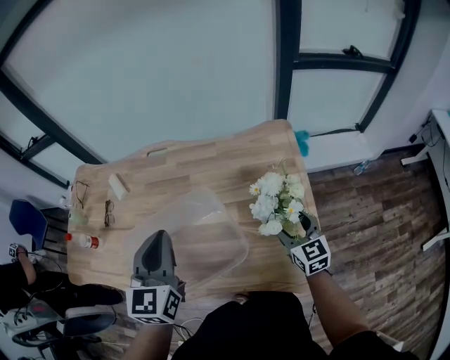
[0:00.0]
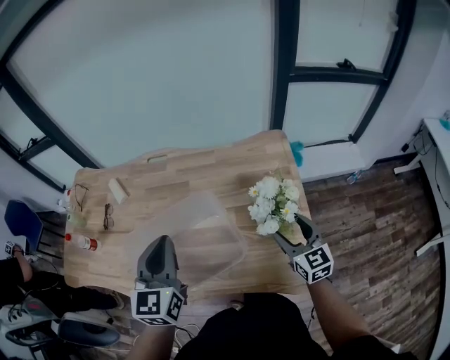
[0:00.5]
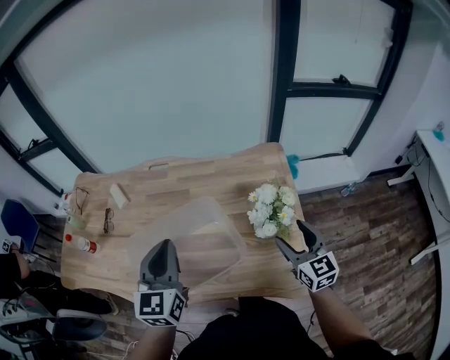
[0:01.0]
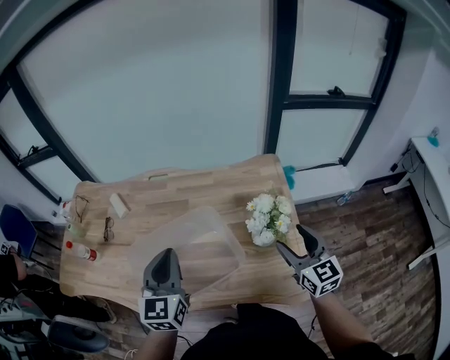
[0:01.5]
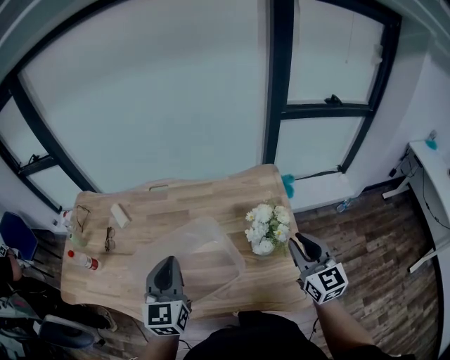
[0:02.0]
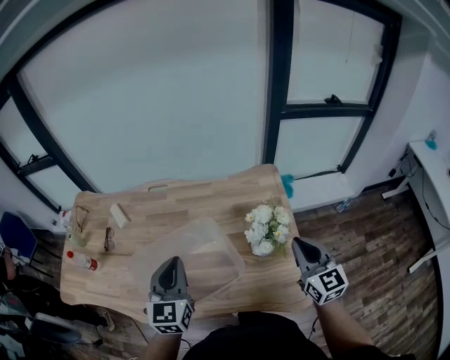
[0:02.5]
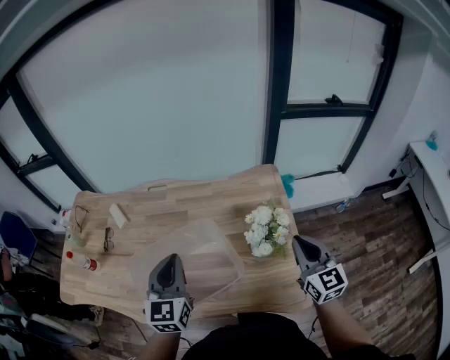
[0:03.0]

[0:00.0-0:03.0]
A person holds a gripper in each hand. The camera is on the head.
0.0 to 1.5 s: The right gripper travels upward and backward by some 15 cm.
1.5 to 3.0 s: The right gripper closes up.

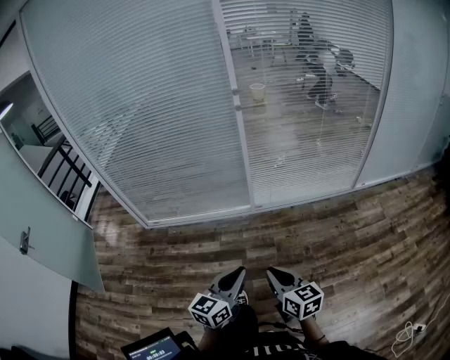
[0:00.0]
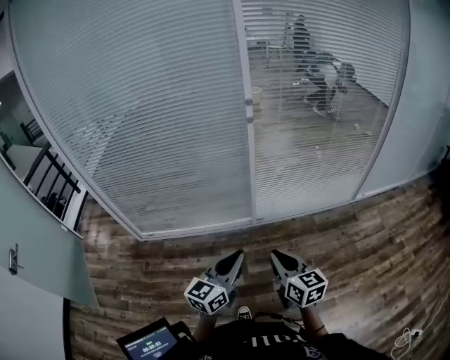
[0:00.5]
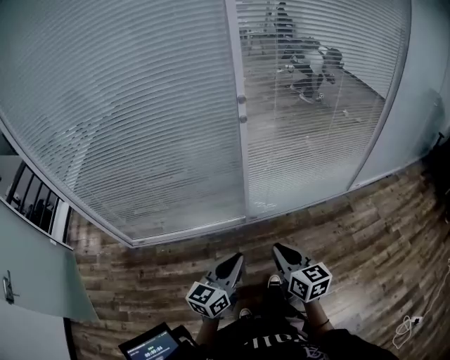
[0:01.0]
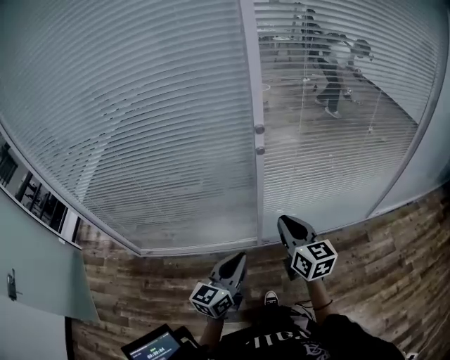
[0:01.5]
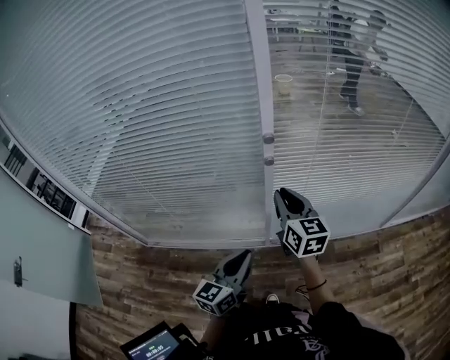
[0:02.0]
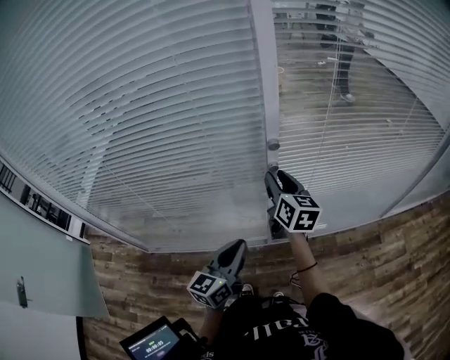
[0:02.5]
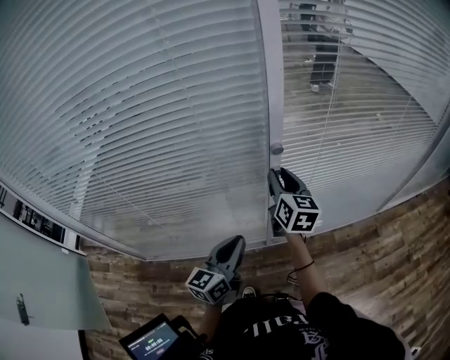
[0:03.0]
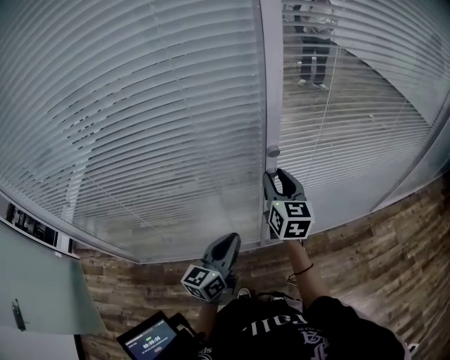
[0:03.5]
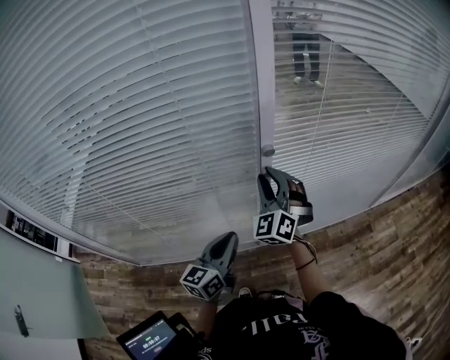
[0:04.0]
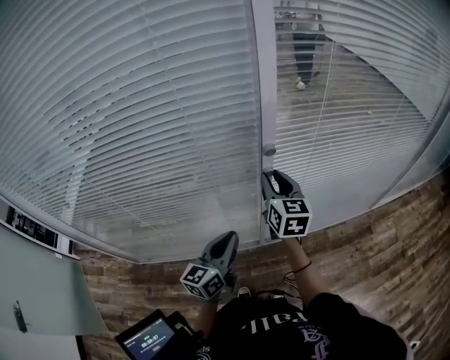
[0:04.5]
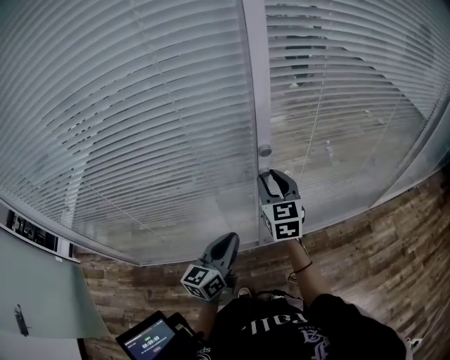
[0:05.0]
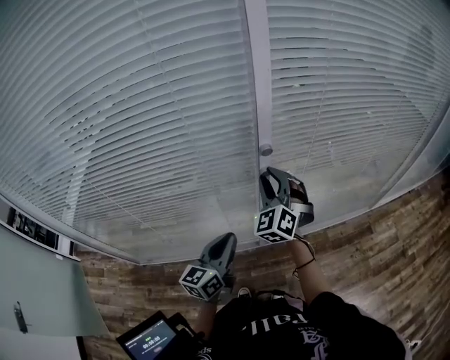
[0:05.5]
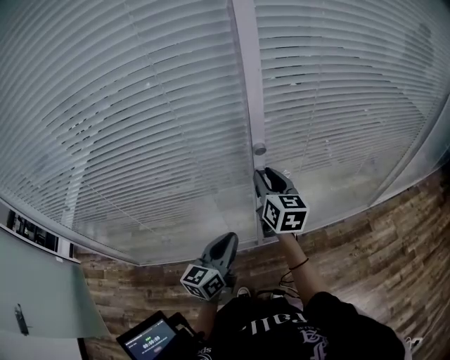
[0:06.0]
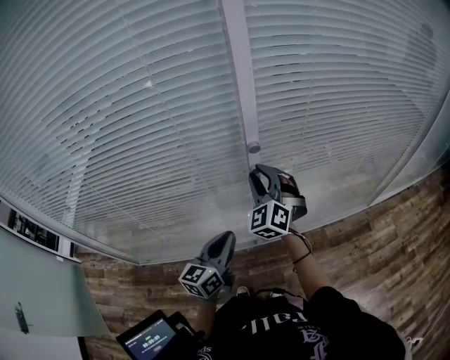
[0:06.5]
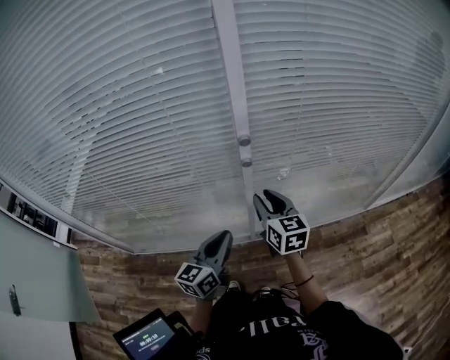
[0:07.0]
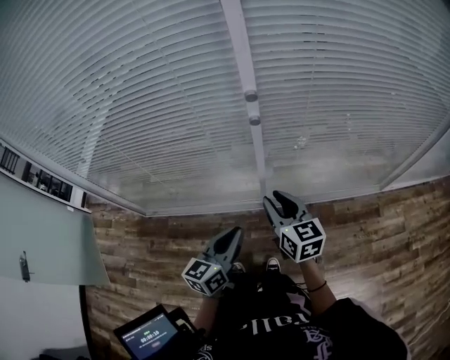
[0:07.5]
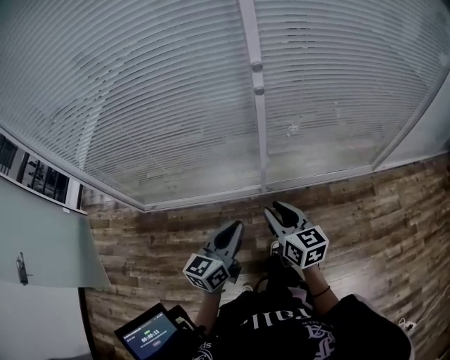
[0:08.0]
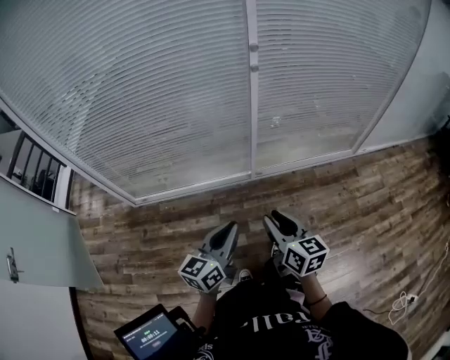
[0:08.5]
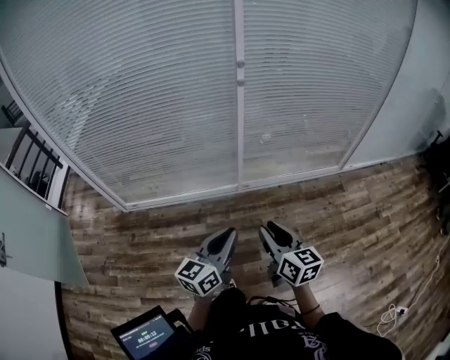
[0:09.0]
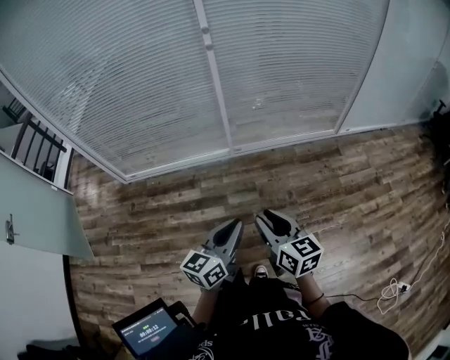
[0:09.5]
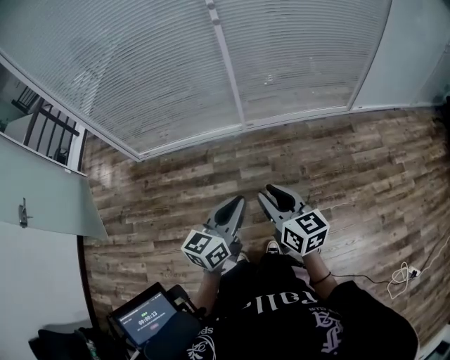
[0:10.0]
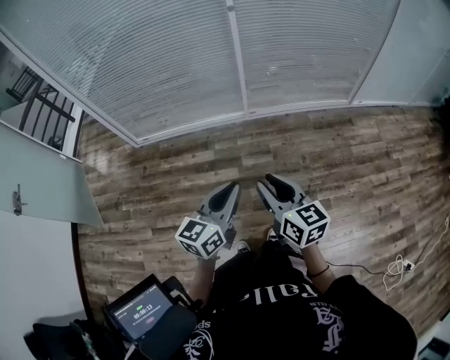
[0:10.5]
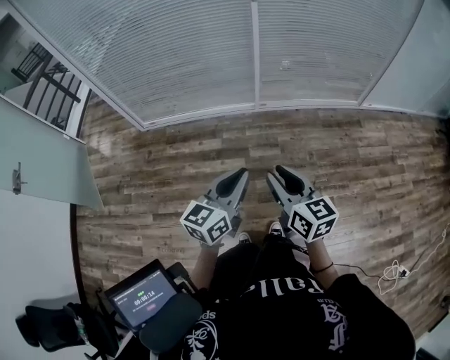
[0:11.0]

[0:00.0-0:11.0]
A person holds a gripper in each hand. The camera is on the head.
0.0 to 2.0 s: The pair of grippers is taken forward, some 70 cm.
2.0 to 3.5 s: The left gripper travels forward and to the left by roughly 15 cm. The right gripper heads forward, covering approximately 15 cm, and opens.
3.5 to 5.5 s: The right gripper twists some 60 degrees counterclockwise, seen from behind.
5.5 to 7.5 s: The right gripper is displaced backward and downward by some 20 cm, and rolls clockwise, seen from behind, by roughly 60 degrees, while the left gripper travels backward and to the right by about 15 cm.
7.5 to 9.0 s: The pair of grippers is taken backward, about 50 cm.
9.0 to 11.0 s: Both grippers travel together backward, some 25 cm.

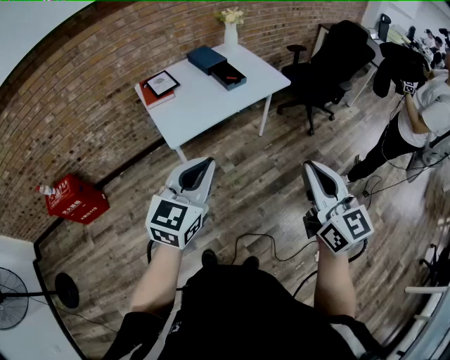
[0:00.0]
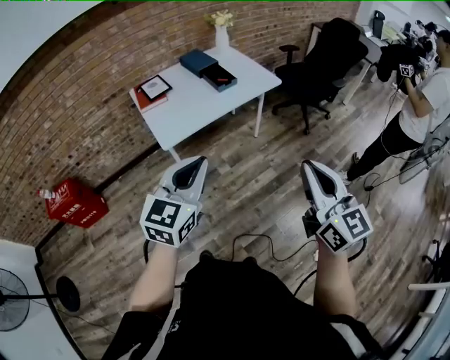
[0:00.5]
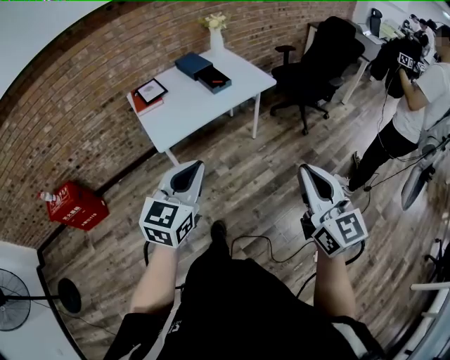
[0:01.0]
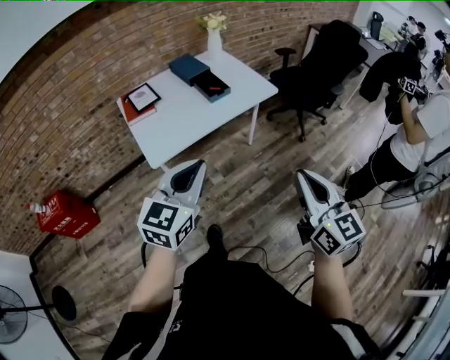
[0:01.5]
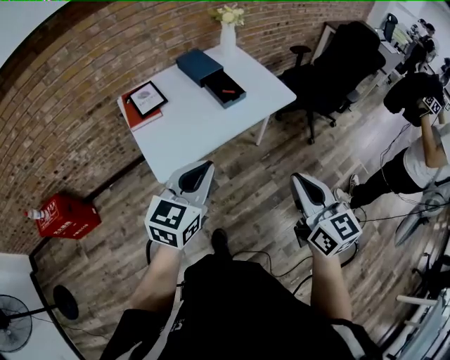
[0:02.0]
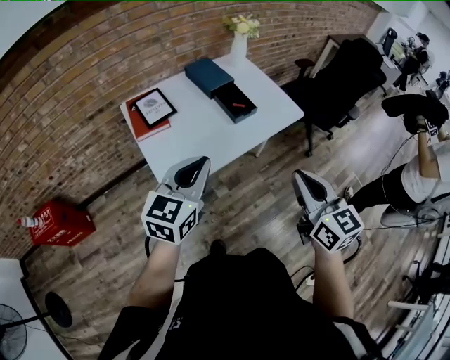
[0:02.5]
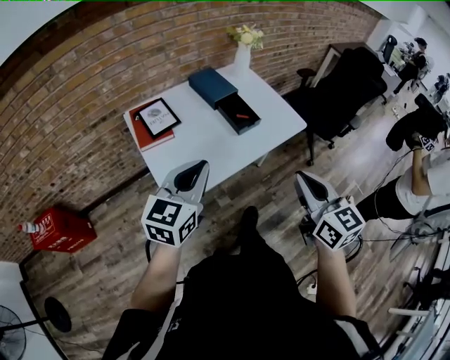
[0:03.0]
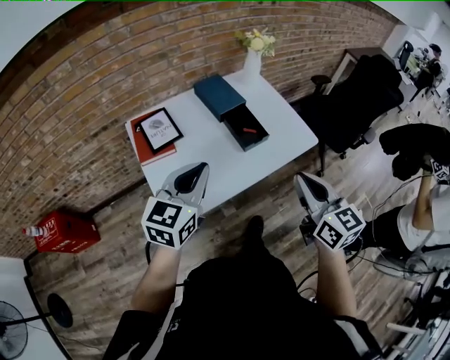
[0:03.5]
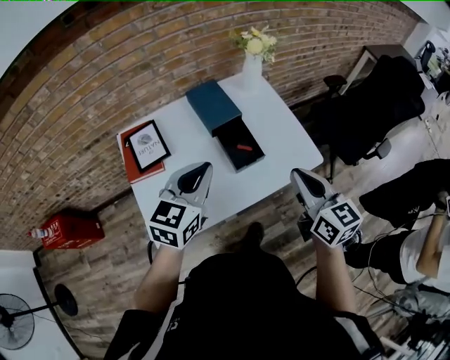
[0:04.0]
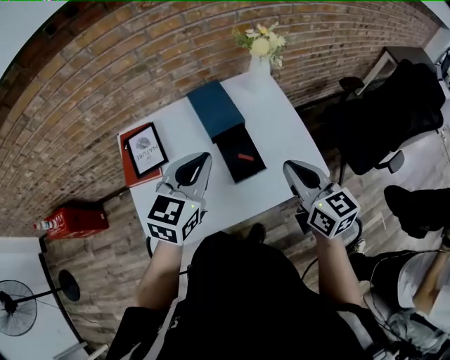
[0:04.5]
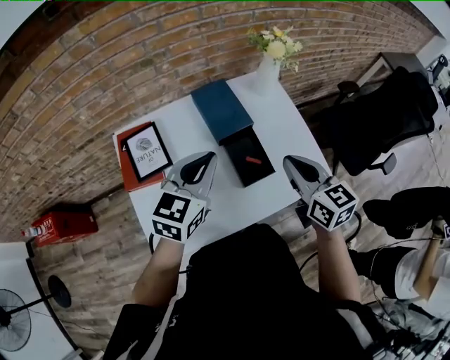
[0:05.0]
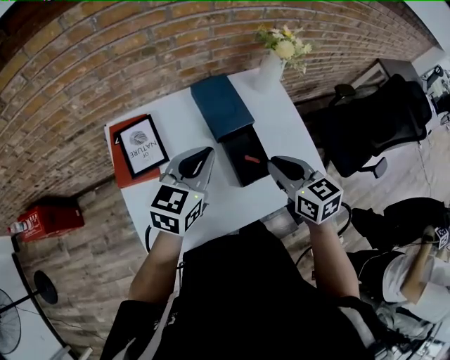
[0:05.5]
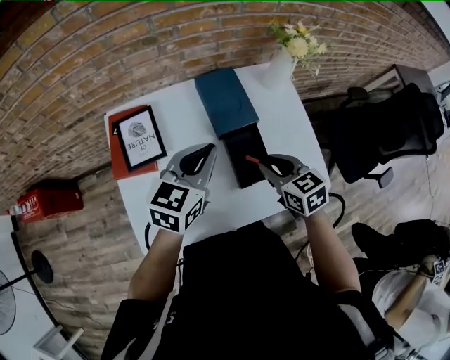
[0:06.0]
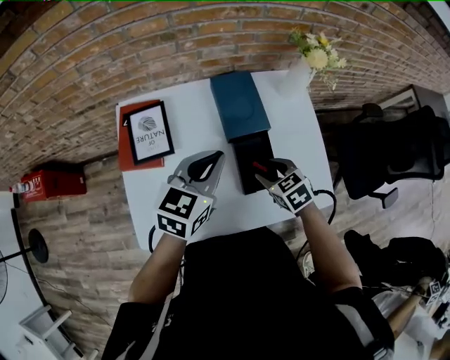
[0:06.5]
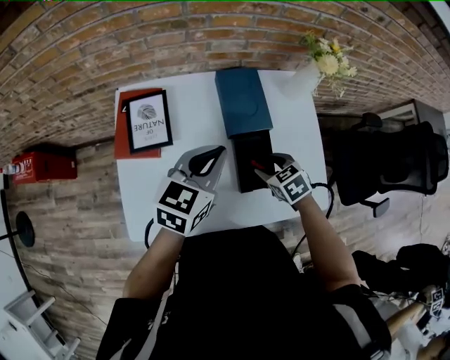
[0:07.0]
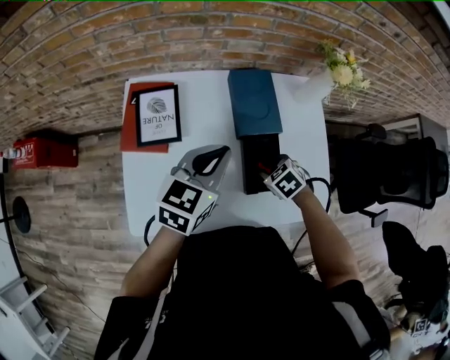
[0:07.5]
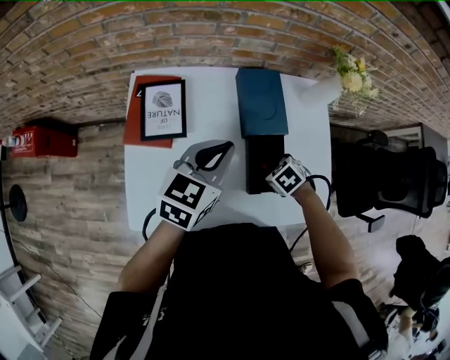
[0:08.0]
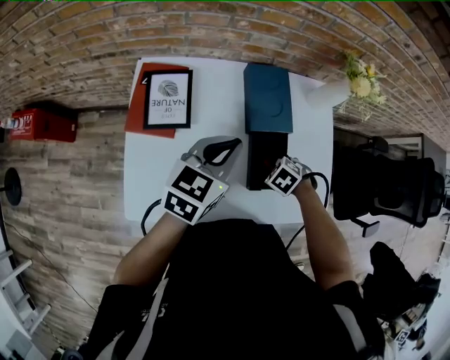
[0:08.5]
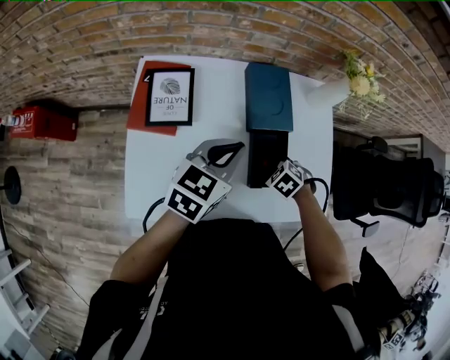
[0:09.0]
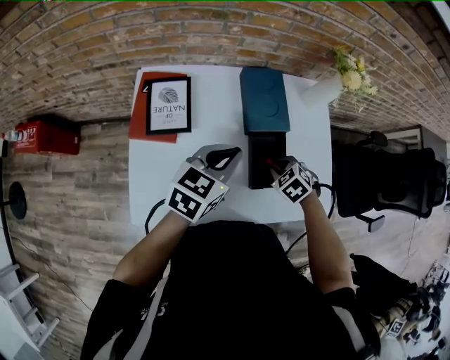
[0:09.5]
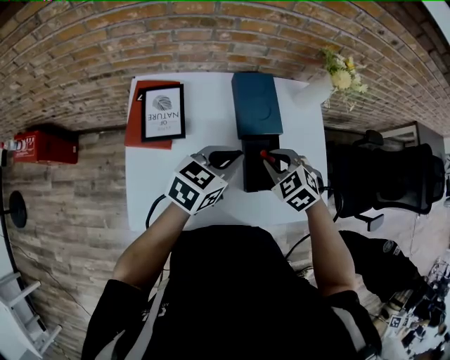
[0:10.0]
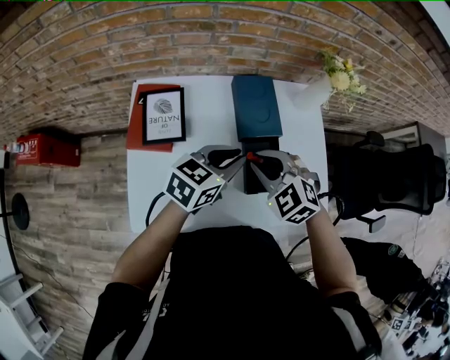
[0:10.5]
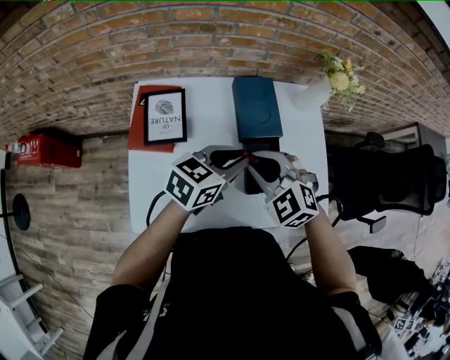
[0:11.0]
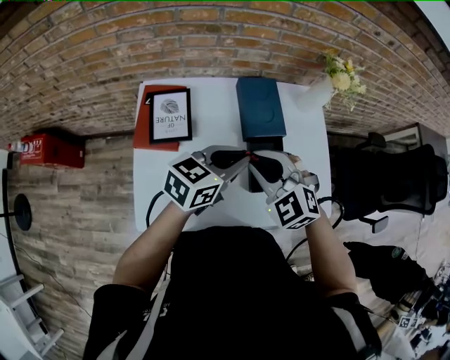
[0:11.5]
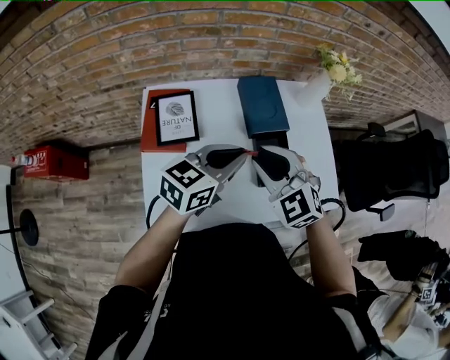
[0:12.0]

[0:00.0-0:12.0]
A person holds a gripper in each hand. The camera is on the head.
0.0 to 2.0 s: The grippers both shift forward by about 20 cm.
2.0 to 4.0 s: Both grippers move forward, approximately 35 cm.
4.0 to 6.0 s: The left gripper shifts approximately 15 cm forward and downward. Meanwhile the right gripper shifts some 25 cm forward, downward and to the left, and swivels approximately 40 degrees.
6.0 to 8.0 s: The right gripper shifts about 15 cm downward, tilts its fingers approximately 40 degrees downward, and opens.
8.0 to 10.0 s: The right gripper travels upward by roughly 10 cm, swivels roughly 30 degrees, and closes. Meanwhile the left gripper shifts by some 5 cm.
10.0 to 12.0 s: The right gripper goes some 15 cm upward, to the left and backward, and changes its angle by roughly 30 degrees. Meanwhile the left gripper travels upward by approximately 5 cm.

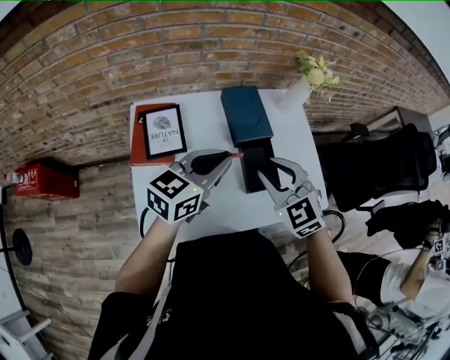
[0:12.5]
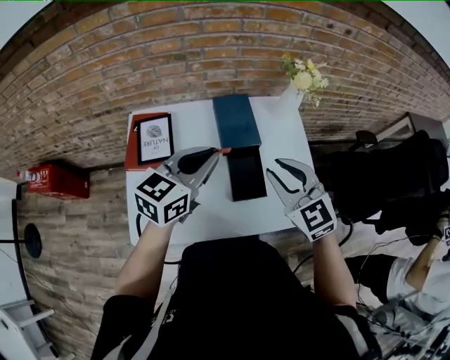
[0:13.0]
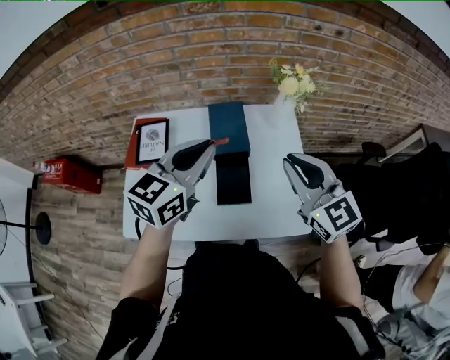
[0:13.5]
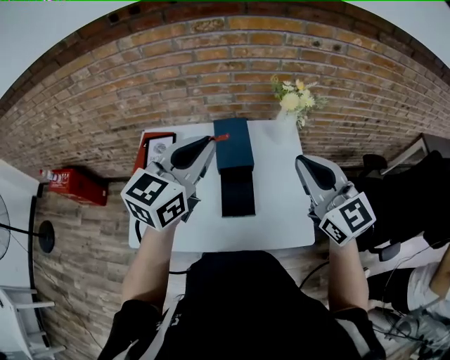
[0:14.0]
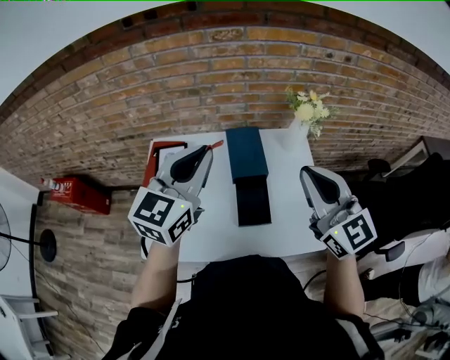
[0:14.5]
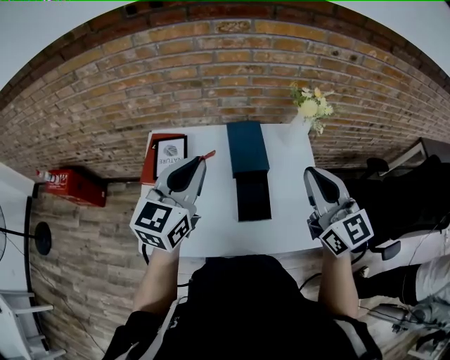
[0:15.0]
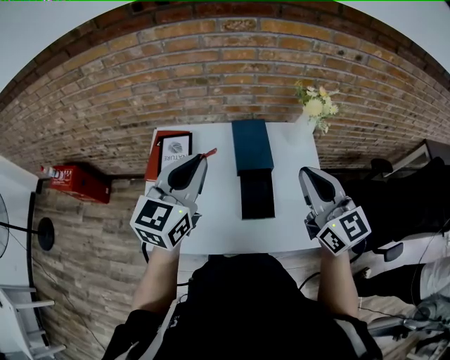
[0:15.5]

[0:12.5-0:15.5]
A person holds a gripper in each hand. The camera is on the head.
12.5 to 14.0 s: The left gripper heads upward and to the right, covering approximately 20 cm, and changes its angle by approximately 30 degrees, while the right gripper moves to the right and upward, about 25 cm, changes its angle by about 40 degrees, and closes.
14.0 to 15.5 s: The right gripper heads to the left, covering approximately 5 cm; the left gripper goes approximately 10 cm to the left.
